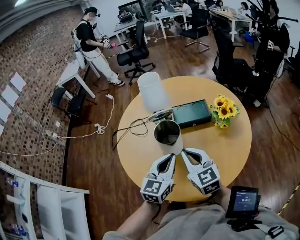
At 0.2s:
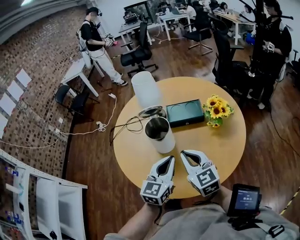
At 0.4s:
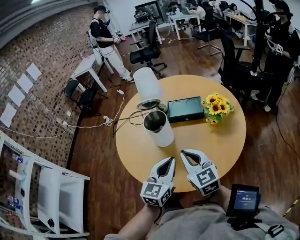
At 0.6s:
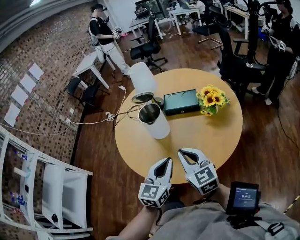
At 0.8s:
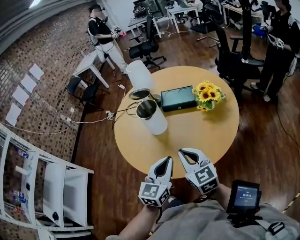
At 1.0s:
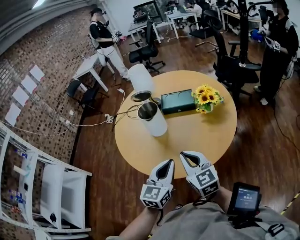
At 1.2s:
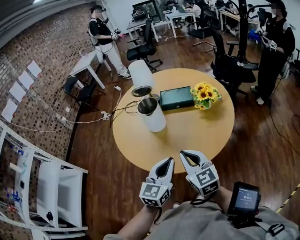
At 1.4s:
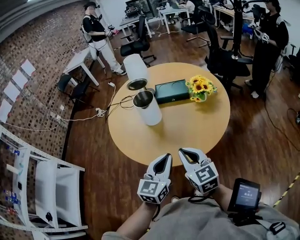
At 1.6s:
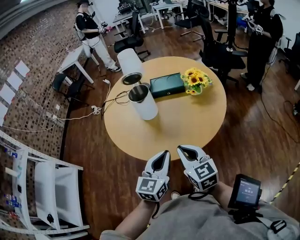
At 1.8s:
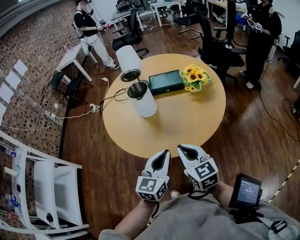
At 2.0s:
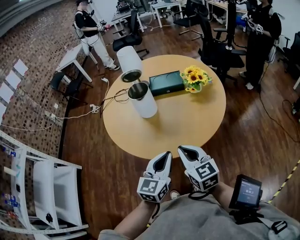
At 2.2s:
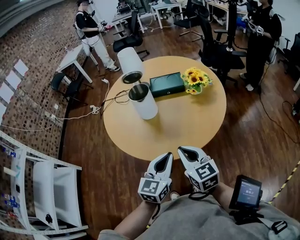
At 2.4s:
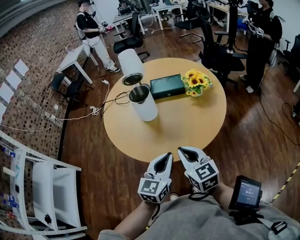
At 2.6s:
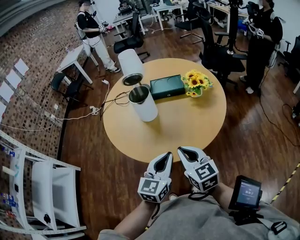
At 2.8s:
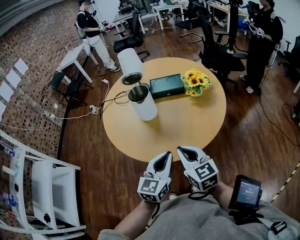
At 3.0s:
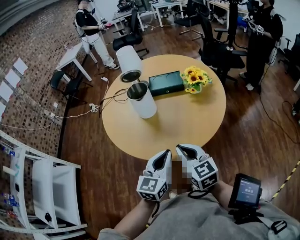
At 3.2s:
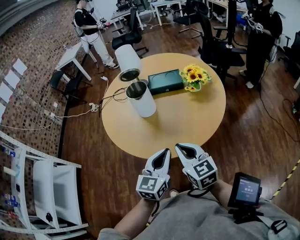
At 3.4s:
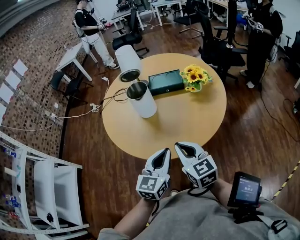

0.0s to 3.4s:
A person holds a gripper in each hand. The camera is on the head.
0.0s to 1.6s: Both grippers travel together backward and to the right, about 25 cm.
1.6s to 3.4s: The grippers make only small movements.

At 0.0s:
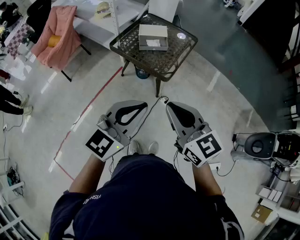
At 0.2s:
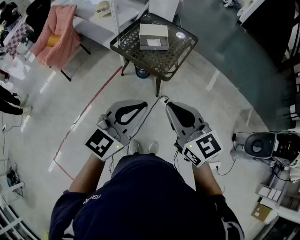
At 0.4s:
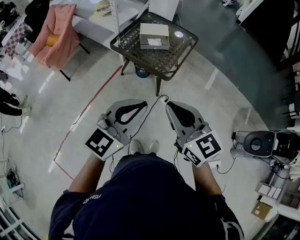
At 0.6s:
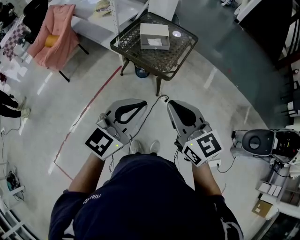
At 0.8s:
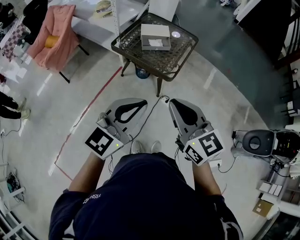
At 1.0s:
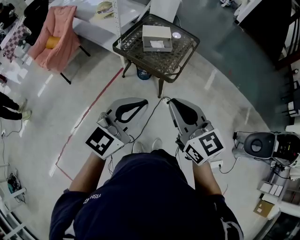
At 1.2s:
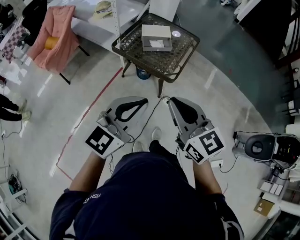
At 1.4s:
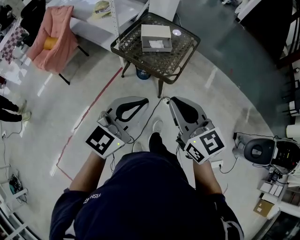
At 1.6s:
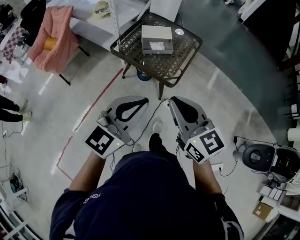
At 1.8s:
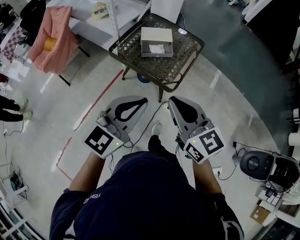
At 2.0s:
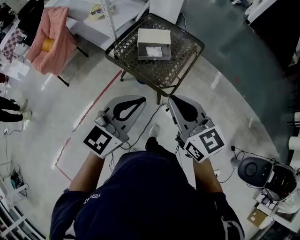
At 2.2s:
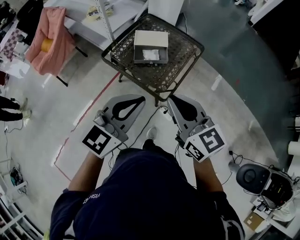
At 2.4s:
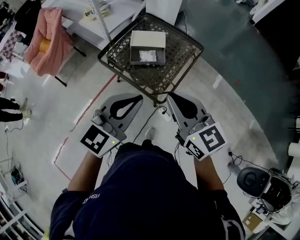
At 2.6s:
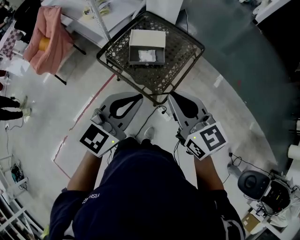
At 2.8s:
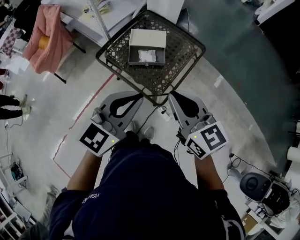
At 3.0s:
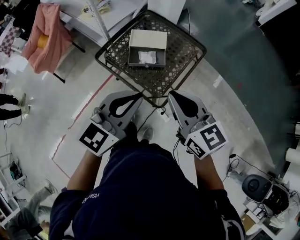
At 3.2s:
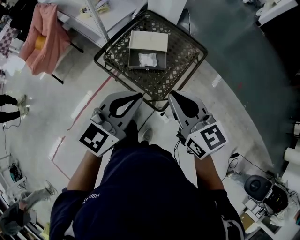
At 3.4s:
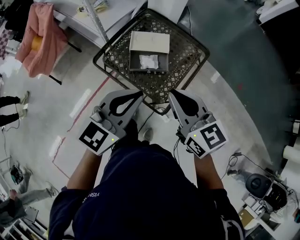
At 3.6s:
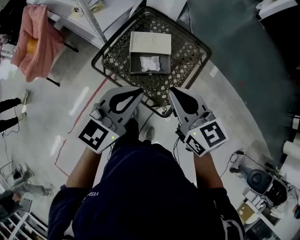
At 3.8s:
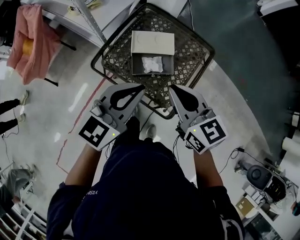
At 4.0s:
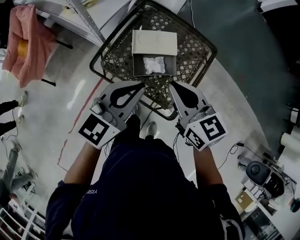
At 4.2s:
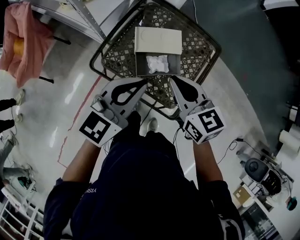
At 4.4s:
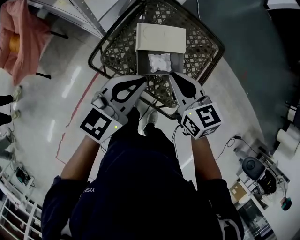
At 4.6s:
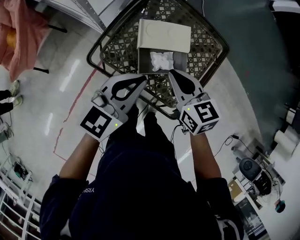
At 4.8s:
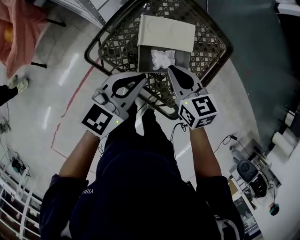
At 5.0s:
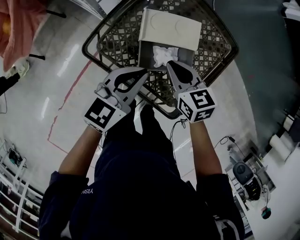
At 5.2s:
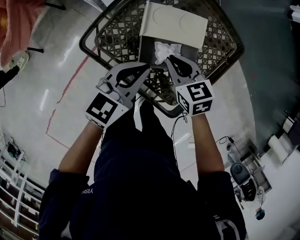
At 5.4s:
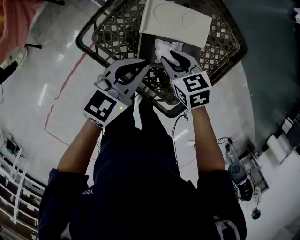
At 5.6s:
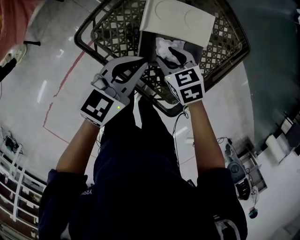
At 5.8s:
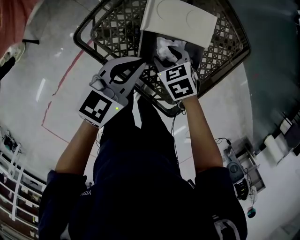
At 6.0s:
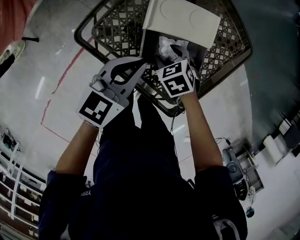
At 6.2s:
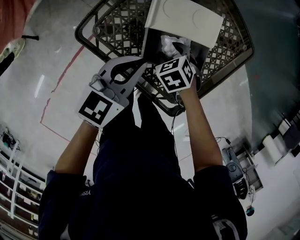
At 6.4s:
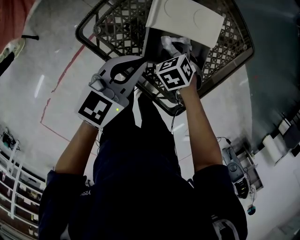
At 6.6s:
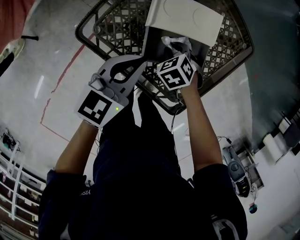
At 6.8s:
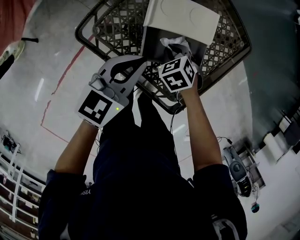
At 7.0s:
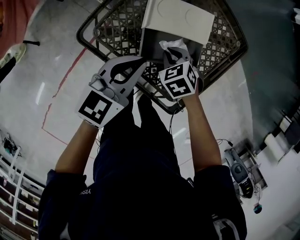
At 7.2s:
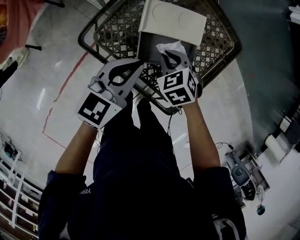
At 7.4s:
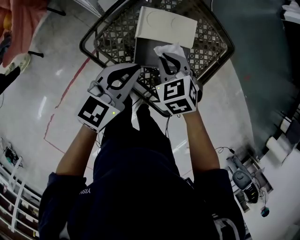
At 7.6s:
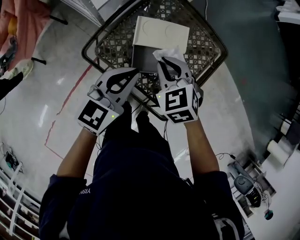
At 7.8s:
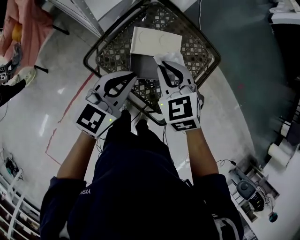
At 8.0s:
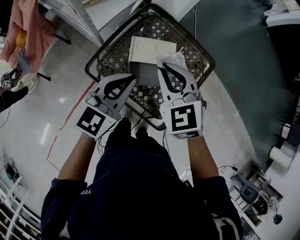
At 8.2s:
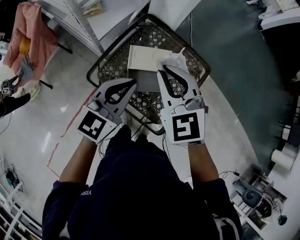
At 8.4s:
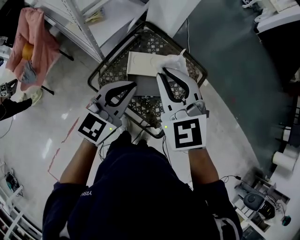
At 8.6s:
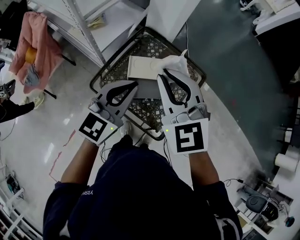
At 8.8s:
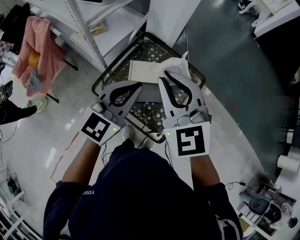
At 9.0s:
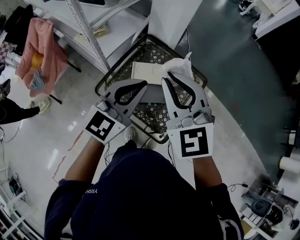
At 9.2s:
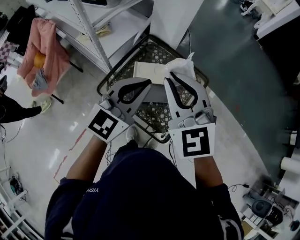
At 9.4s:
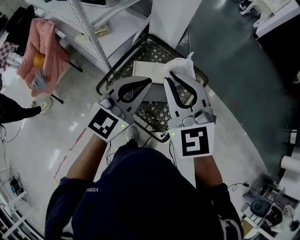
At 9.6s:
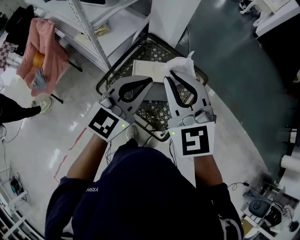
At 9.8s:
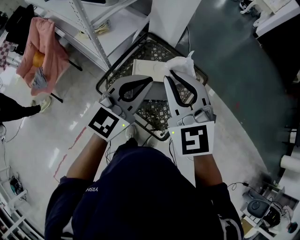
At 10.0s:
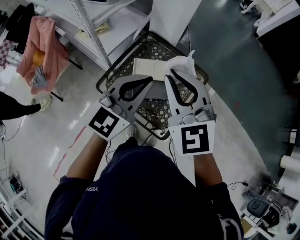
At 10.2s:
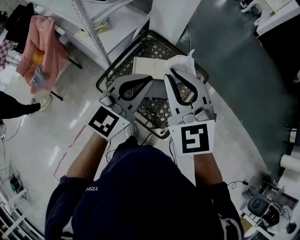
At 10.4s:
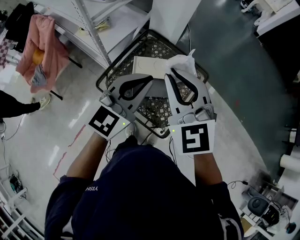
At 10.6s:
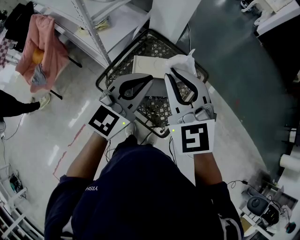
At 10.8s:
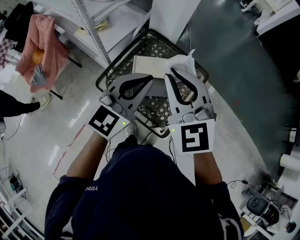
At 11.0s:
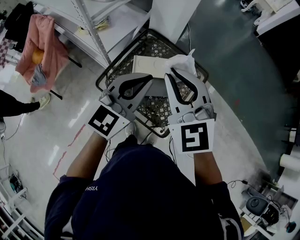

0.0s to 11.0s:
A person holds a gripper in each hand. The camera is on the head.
0.0s to 1.6s: The left gripper is displaced forward and to the left by some 10 cm. The right gripper heads forward, covering about 10 cm.
1.6s to 3.2s: The two grippers go roughly 30 cm forward.
3.2s to 4.8s: Both grippers travel together forward, downward and to the left, about 35 cm. The right gripper swivels some 20 degrees.
4.8s to 6.2s: The right gripper goes approximately 25 cm downward, tilts its fingers about 40 degrees downward, and opens up. Meanwhile the left gripper heads downward, covering approximately 10 cm.
6.2s to 7.8s: The left gripper travels upward by about 20 cm; the right gripper is displaced upward by approximately 30 cm, points its fingers approximately 30 degrees further upward, and closes up.
7.8s to 9.4s: Both grippers move upward, approximately 20 cm. The right gripper rotates roughly 30 degrees.
9.4s to 11.0s: Neither gripper changes place.

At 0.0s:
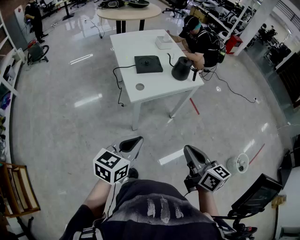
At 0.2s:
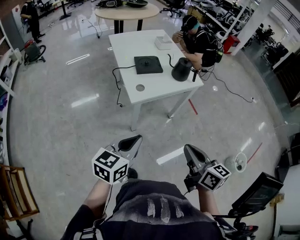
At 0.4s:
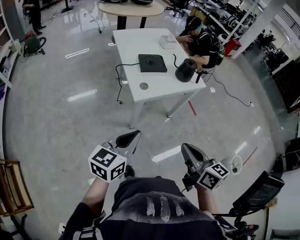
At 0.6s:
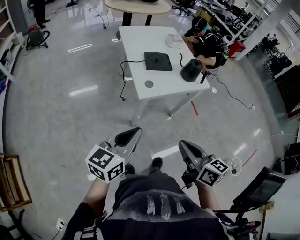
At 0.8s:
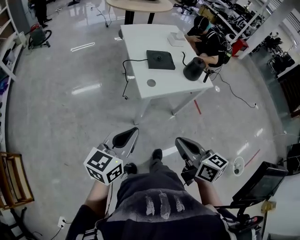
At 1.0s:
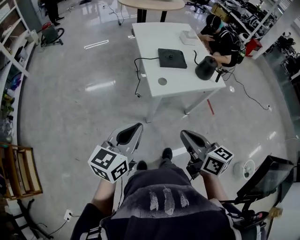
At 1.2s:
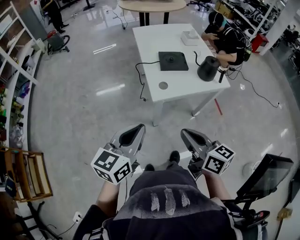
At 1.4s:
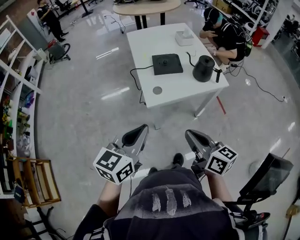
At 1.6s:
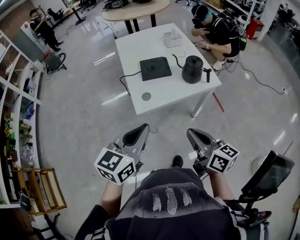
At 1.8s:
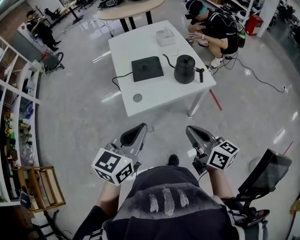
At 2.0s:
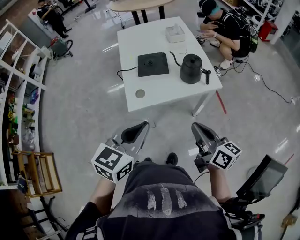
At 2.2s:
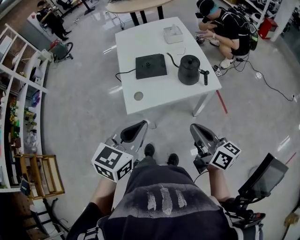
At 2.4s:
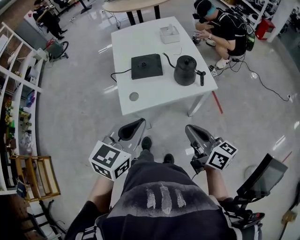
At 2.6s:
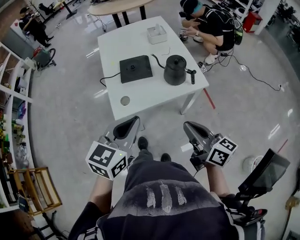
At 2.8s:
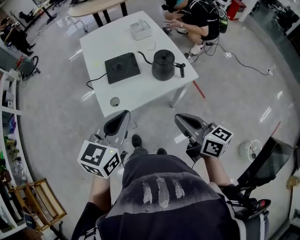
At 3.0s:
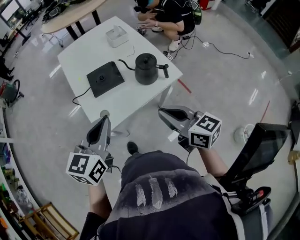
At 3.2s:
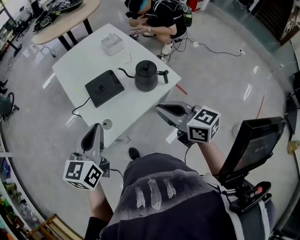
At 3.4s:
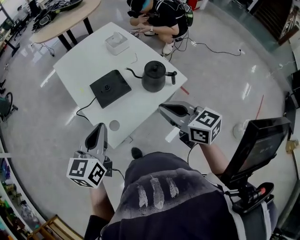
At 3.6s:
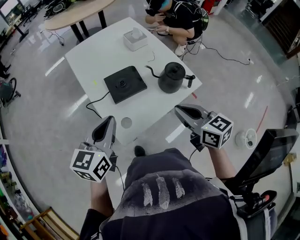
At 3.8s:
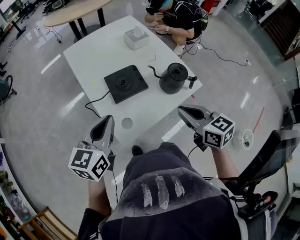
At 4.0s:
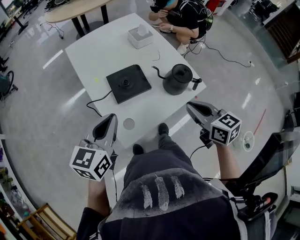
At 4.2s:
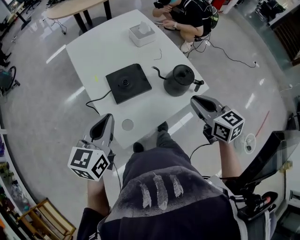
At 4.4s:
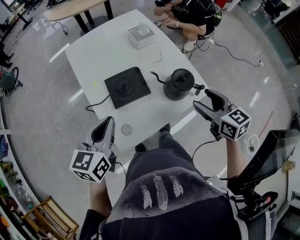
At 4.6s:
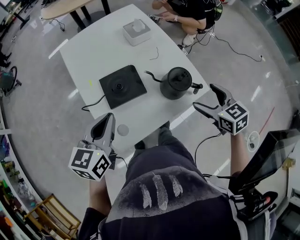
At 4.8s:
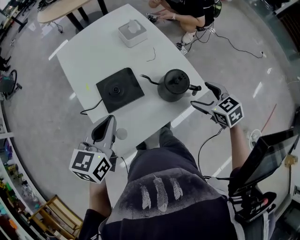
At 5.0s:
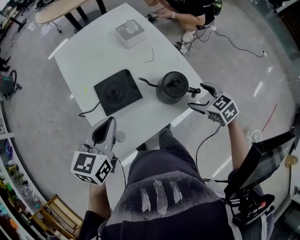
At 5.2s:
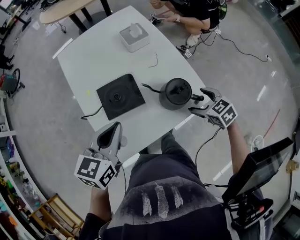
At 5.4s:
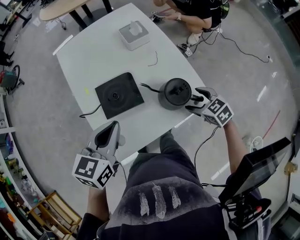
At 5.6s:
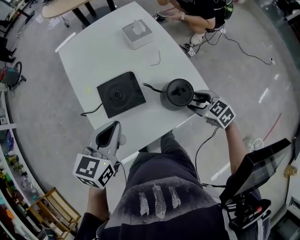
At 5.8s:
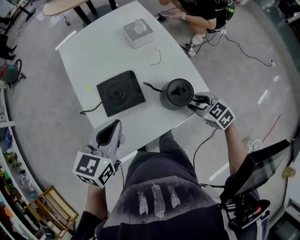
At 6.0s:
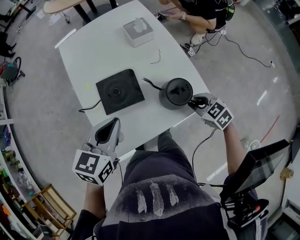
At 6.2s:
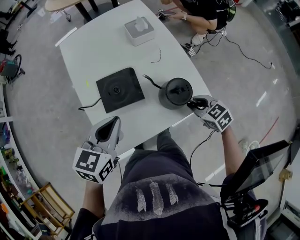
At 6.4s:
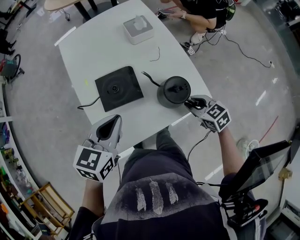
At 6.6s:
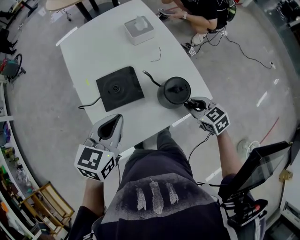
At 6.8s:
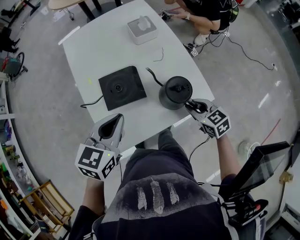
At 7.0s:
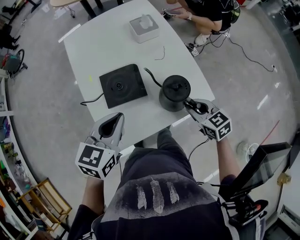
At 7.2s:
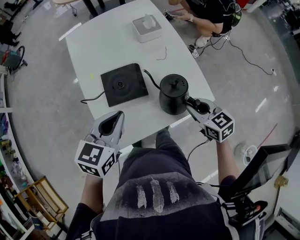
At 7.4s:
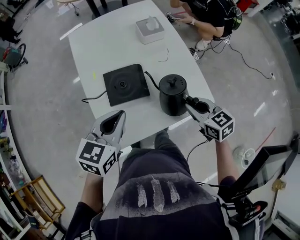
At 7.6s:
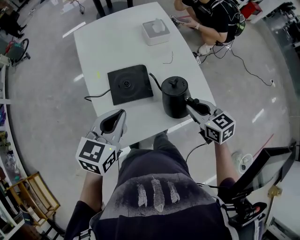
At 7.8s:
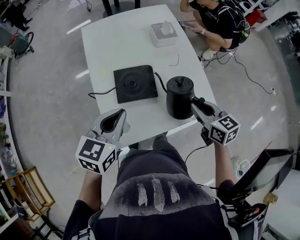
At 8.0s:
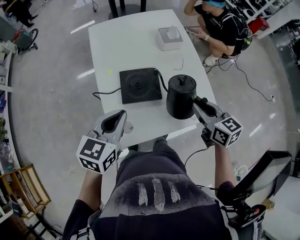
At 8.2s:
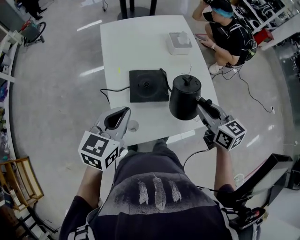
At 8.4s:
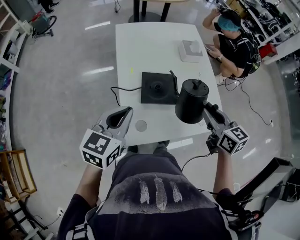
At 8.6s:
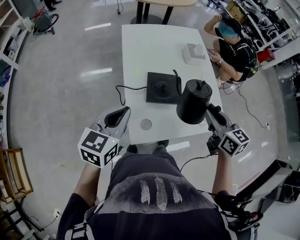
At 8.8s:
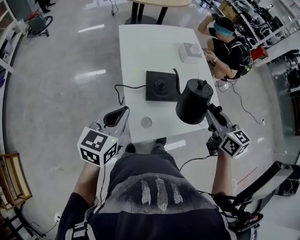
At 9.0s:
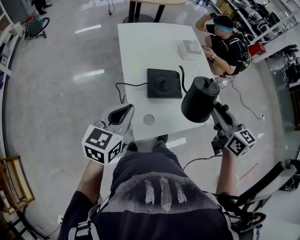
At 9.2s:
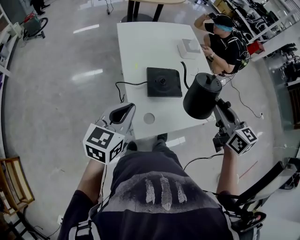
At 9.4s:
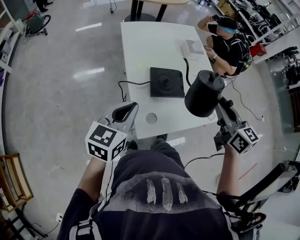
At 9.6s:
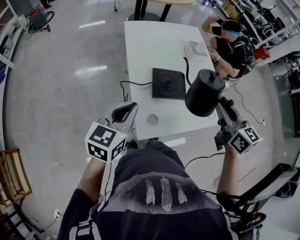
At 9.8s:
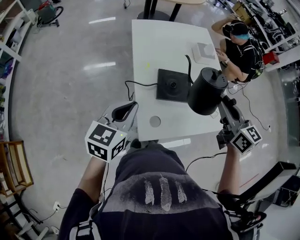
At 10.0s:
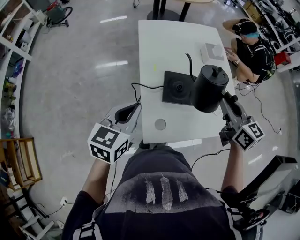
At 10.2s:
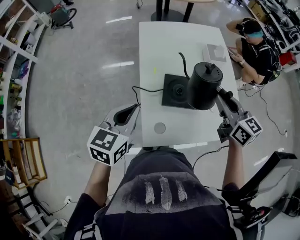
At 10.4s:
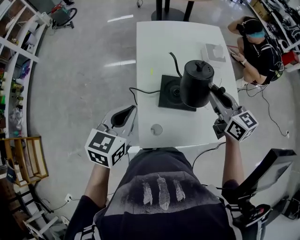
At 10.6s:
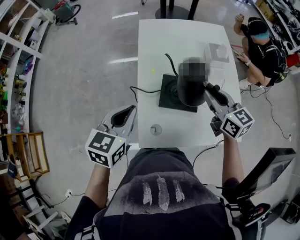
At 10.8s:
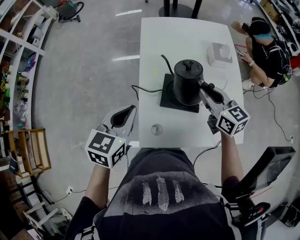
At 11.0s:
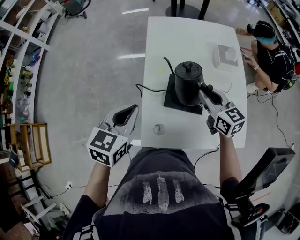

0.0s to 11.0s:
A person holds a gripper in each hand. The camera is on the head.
0.0s to 1.6s: The left gripper goes approximately 15 cm forward and upward, and goes to the left and returns, some 10 cm each way; the right gripper moves forward, roughly 15 cm.
1.6s to 3.2s: Both grippers travel together forward, about 20 cm.
3.2s to 4.8s: The right gripper heads forward, downward and to the right, covering about 25 cm, points its fingers roughly 30 degrees further downward, and opens its fingers. Meanwhile the left gripper moves forward and downward, about 15 cm.
4.8s to 6.2s: The right gripper heads downward, covering some 5 cm, and closes its fingers.
6.2s to 7.8s: The right gripper shifts some 10 cm upward and to the left, and rotates approximately 20 degrees.
7.8s to 9.4s: The right gripper travels upward and to the left by approximately 20 cm. The left gripper is displaced to the left and backward by some 15 cm.
9.4s to 11.0s: The right gripper travels forward and downward by approximately 20 cm, and turns by some 20 degrees; the left gripper goes some 5 cm forward, and rotates about 20 degrees.
